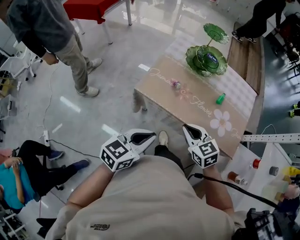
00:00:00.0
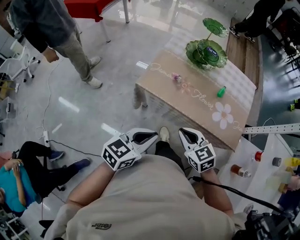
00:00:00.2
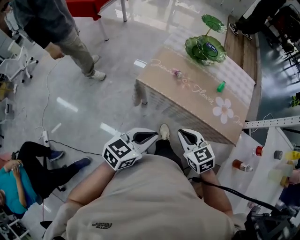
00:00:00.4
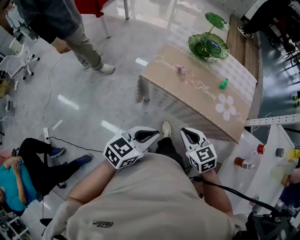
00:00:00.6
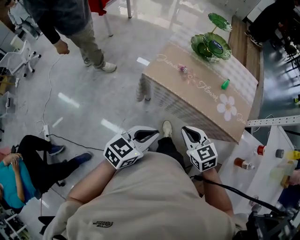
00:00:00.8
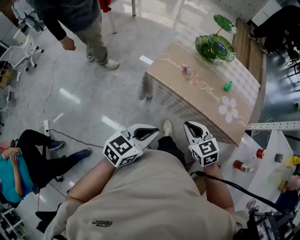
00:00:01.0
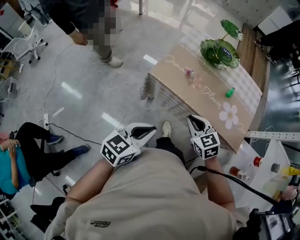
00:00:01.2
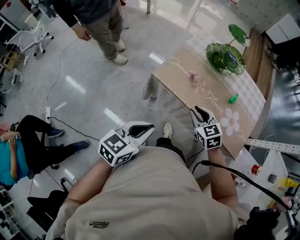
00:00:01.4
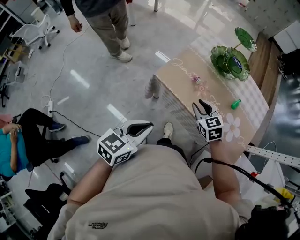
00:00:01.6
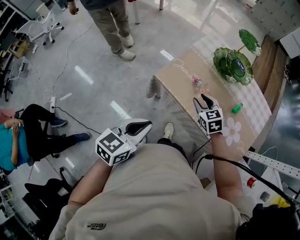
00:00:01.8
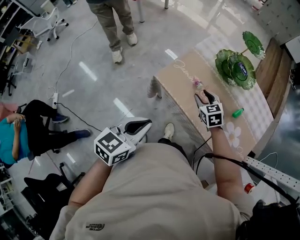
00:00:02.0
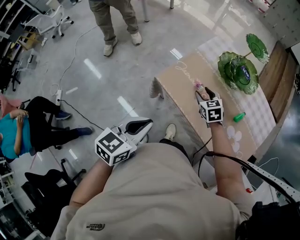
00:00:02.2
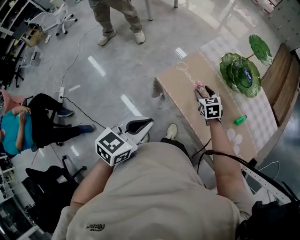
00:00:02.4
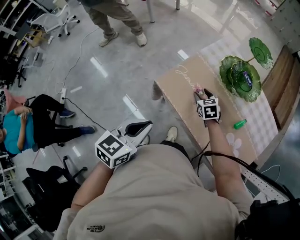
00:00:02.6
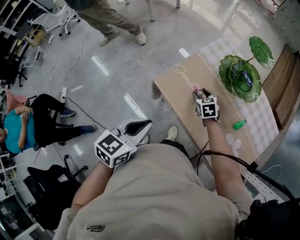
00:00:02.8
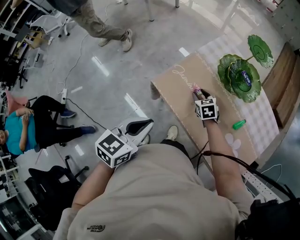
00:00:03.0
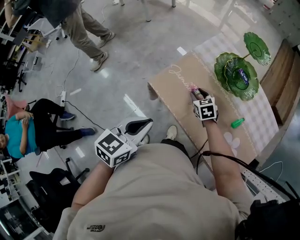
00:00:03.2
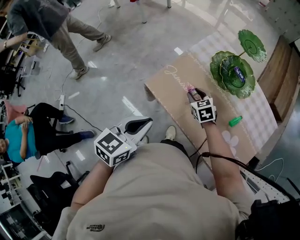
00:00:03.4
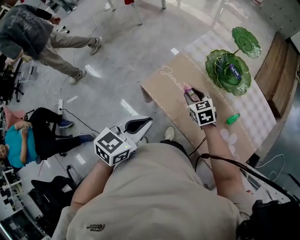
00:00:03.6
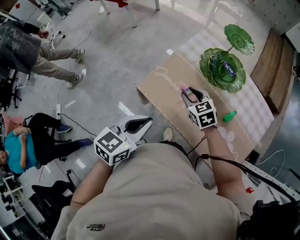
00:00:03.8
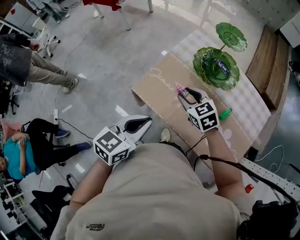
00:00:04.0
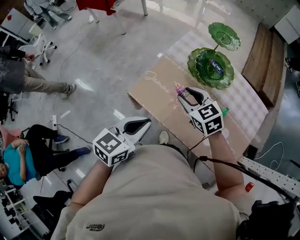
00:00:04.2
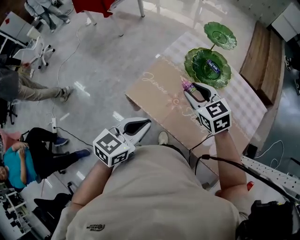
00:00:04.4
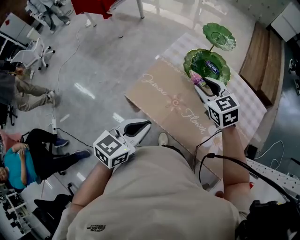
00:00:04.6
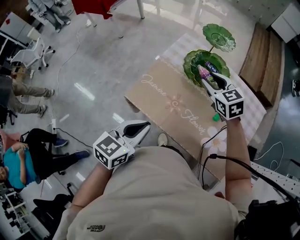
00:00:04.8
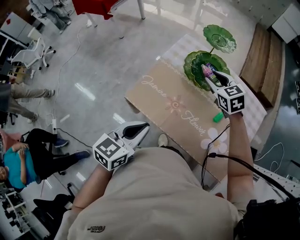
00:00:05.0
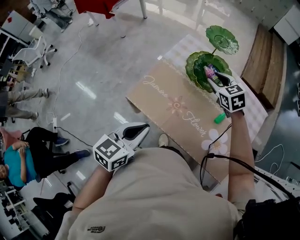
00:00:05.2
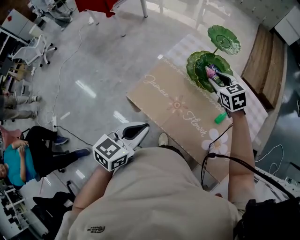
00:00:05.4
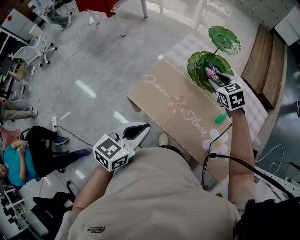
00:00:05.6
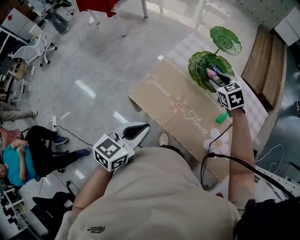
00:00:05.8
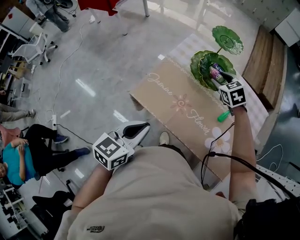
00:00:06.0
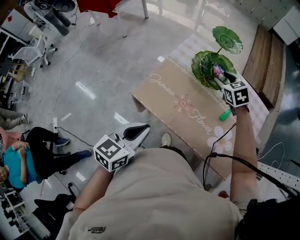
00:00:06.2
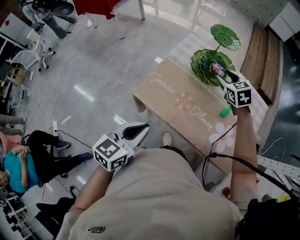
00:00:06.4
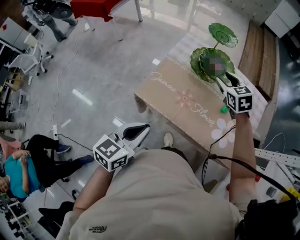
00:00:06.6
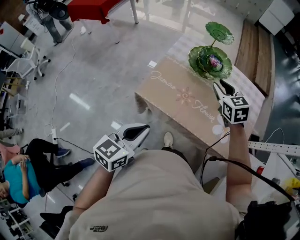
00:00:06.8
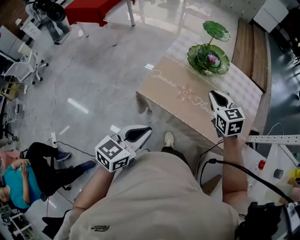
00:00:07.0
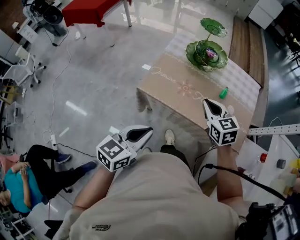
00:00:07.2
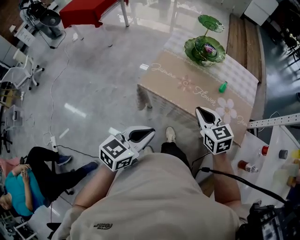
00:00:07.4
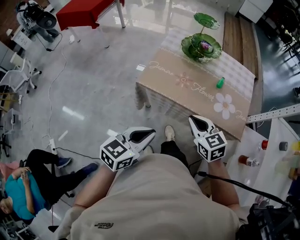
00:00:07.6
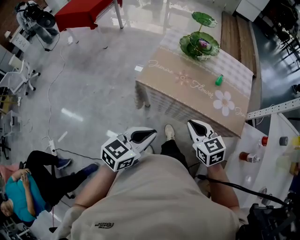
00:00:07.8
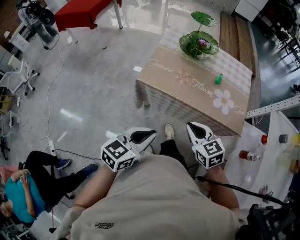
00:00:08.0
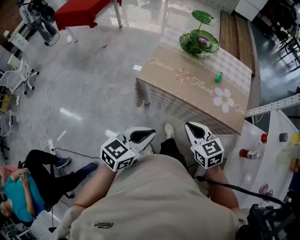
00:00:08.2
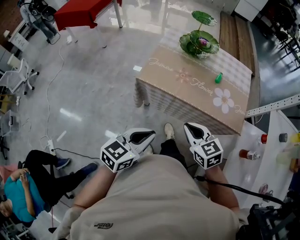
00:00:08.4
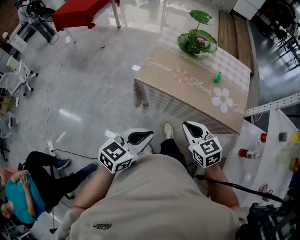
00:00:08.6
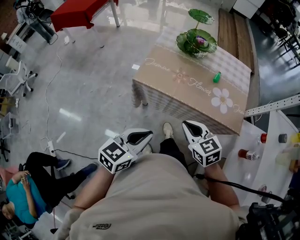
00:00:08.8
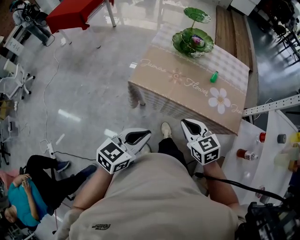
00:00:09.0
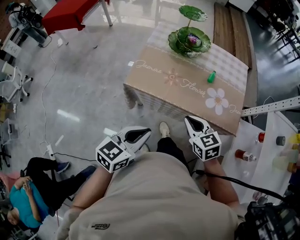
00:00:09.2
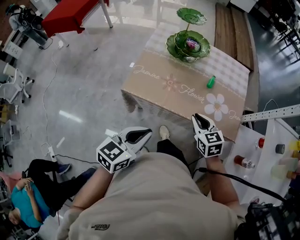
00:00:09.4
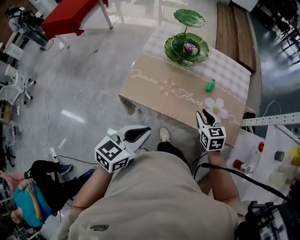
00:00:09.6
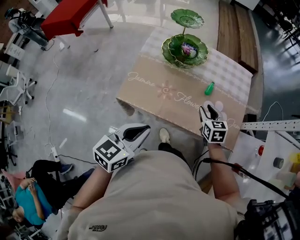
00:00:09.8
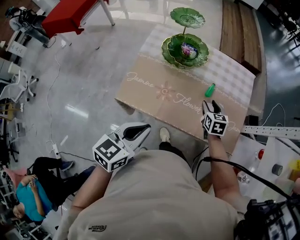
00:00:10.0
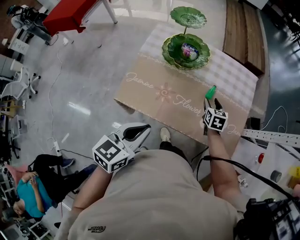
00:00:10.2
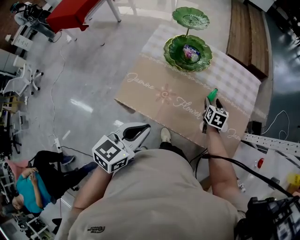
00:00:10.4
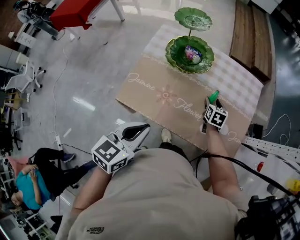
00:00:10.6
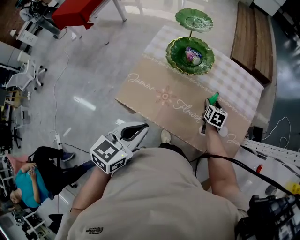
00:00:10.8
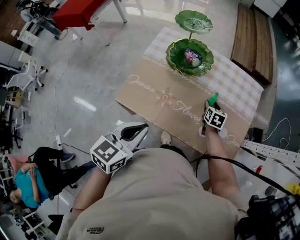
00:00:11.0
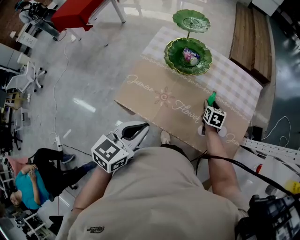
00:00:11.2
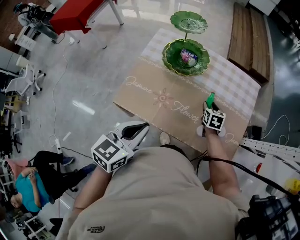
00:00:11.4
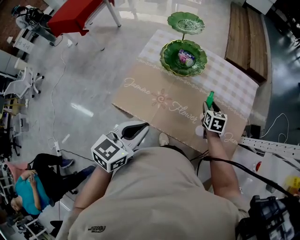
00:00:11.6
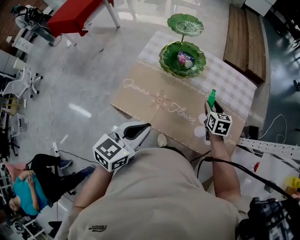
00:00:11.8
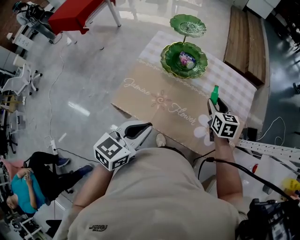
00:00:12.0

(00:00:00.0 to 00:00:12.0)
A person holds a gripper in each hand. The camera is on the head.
00:00:00.0 - 00:00:01.6: The right gripper heads forward and downward, covering approximately 10 cm, and opens, while the left gripper shifts about 5 cm to the left, and goes backward and returns, approximately 10 cm each way.
00:00:01.6 - 00:00:03.0: The right gripper goes roughly 20 cm forward and downward, while the left gripper shifts approximately 10 cm forward and to the right.
00:00:03.0 - 00:00:04.4: The right gripper is displaced upward by approximately 20 cm. Meanwhile the left gripper goes about 10 cm to the right.
00:00:04.4 - 00:00:06.0: The right gripper travels forward, to the right and downward by approximately 15 cm, and swivels about 20 degrees.
00:00:06.0 - 00:00:07.6: The right gripper travels backward by approximately 40 cm, changes its angle by roughly 30 degrees, and closes up. The left gripper travels backward by roughly 20 cm, and turns by about 20 degrees.
00:00:09.0 - 00:00:10.4: The left gripper shifts some 20 cm forward. Meanwhile the right gripper moves forward, downward and to the right, some 40 cm, swivels about 40 degrees, and opens up.
00:00:10.4 - 00:00:12.0: The right gripper heads upward, covering some 10 cm.

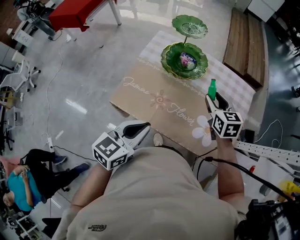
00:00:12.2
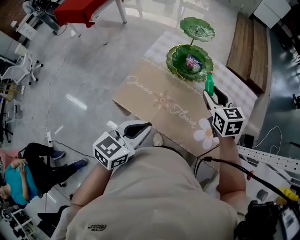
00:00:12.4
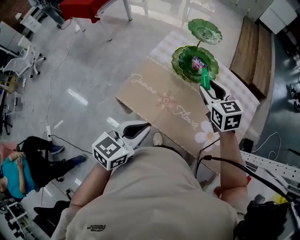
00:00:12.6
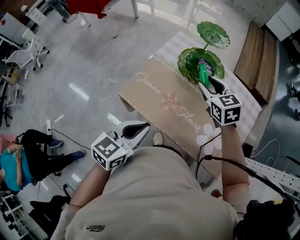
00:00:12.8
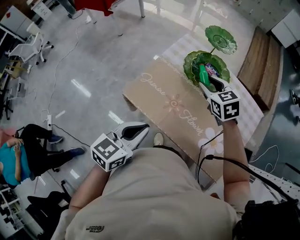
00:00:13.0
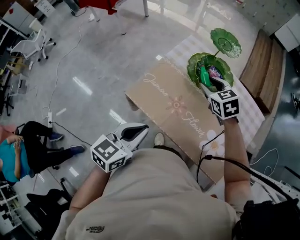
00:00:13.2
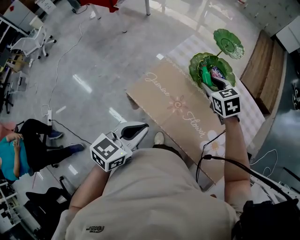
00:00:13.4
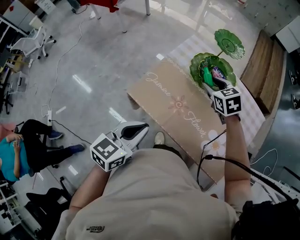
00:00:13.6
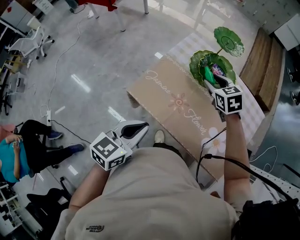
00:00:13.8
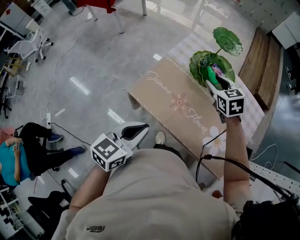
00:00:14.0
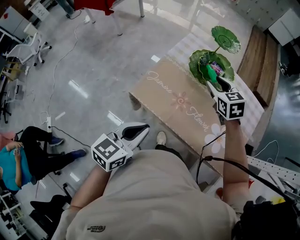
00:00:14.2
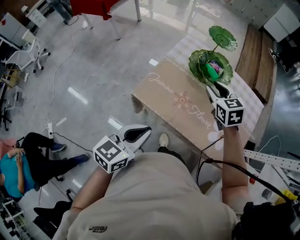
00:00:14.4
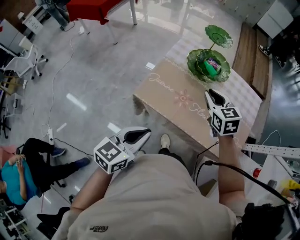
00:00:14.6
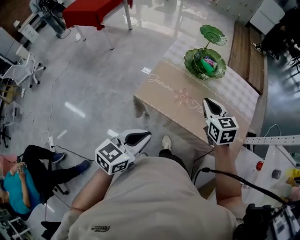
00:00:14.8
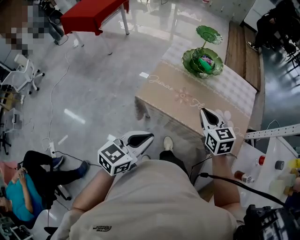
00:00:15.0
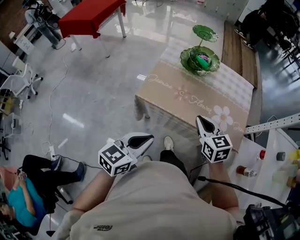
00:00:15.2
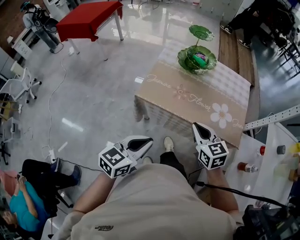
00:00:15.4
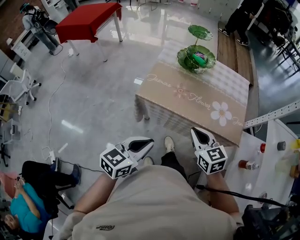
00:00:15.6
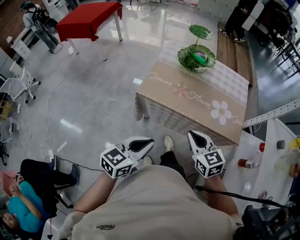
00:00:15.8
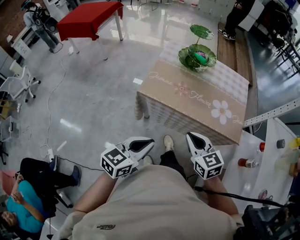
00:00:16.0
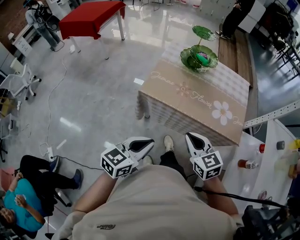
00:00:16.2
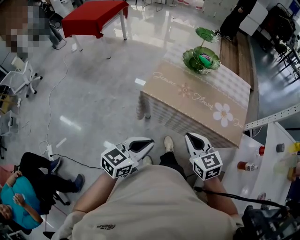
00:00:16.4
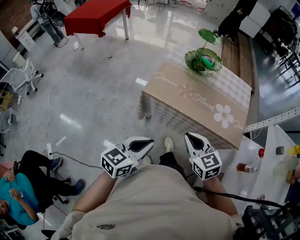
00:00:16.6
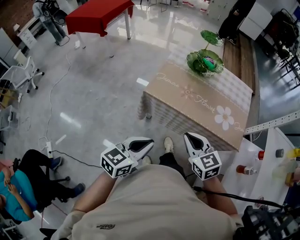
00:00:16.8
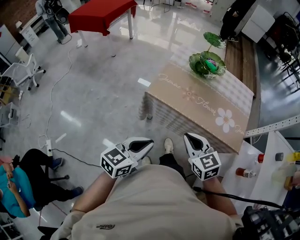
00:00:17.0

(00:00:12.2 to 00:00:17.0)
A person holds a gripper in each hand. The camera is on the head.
00:00:12.2 - 00:00:13.8: The left gripper moves to the left, roughly 10 cm, while the right gripper shifts roughly 20 cm to the left and forward, and turns by some 30 degrees.
00:00:13.8 - 00:00:15.4: The right gripper heads backward, covering some 35 cm, rotates about 30 degrees, and closes its fingers. The left gripper travels backward by some 20 cm, and swivels about 20 degrees.
00:00:15.4 - 00:00:17.0: The right gripper shifts roughly 10 cm backward and to the left. Meanwhile the left gripper changes place by roughly 5 cm.

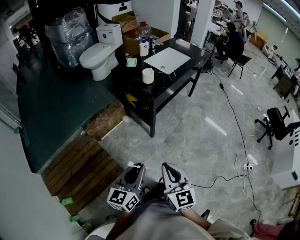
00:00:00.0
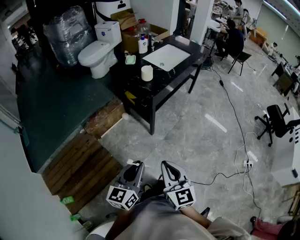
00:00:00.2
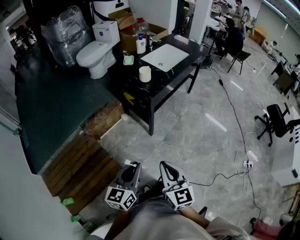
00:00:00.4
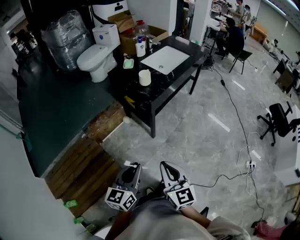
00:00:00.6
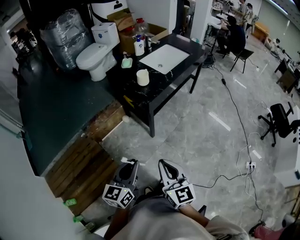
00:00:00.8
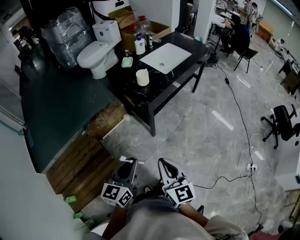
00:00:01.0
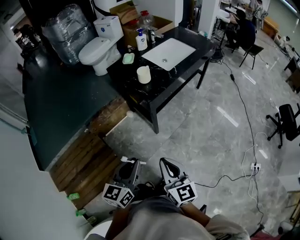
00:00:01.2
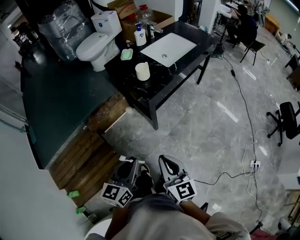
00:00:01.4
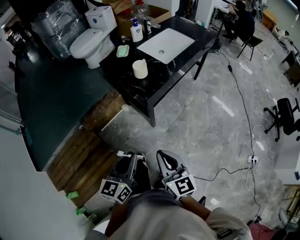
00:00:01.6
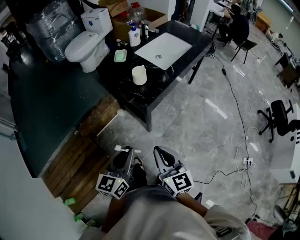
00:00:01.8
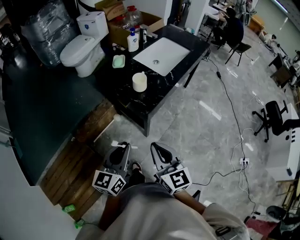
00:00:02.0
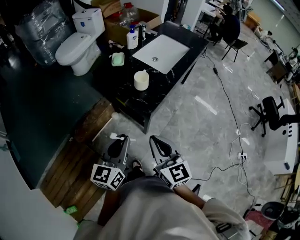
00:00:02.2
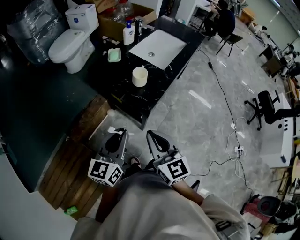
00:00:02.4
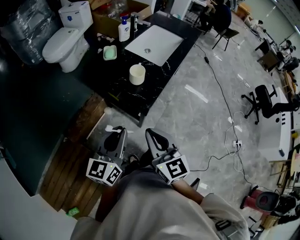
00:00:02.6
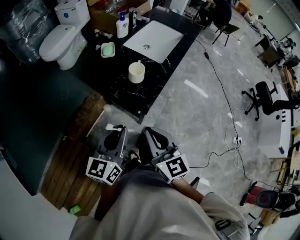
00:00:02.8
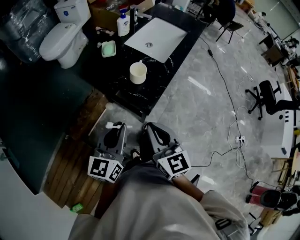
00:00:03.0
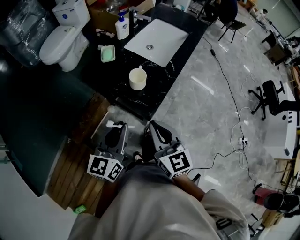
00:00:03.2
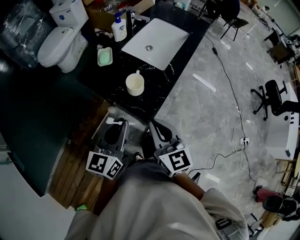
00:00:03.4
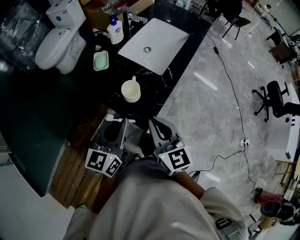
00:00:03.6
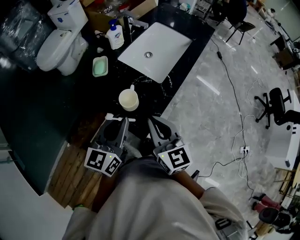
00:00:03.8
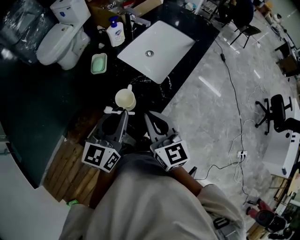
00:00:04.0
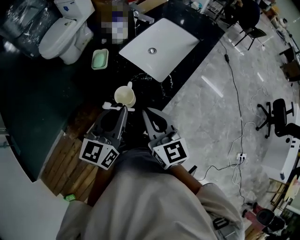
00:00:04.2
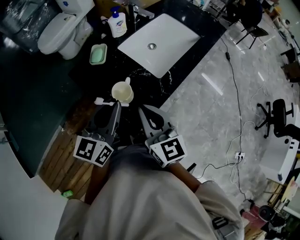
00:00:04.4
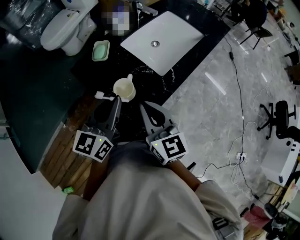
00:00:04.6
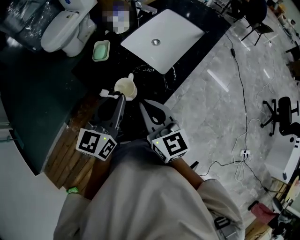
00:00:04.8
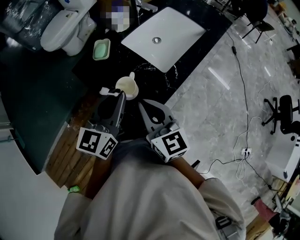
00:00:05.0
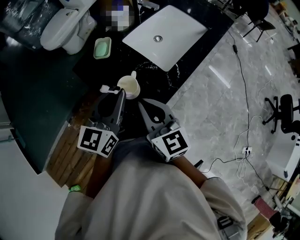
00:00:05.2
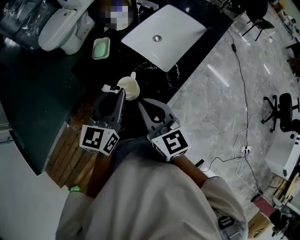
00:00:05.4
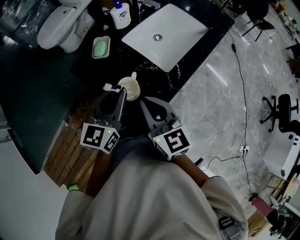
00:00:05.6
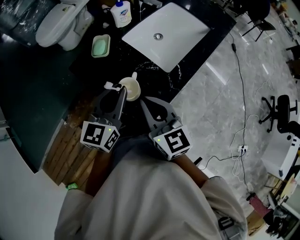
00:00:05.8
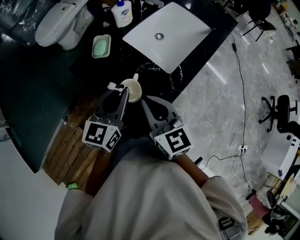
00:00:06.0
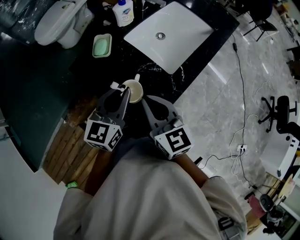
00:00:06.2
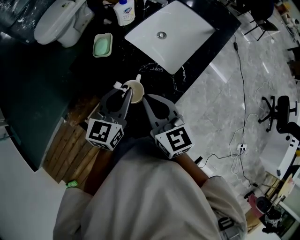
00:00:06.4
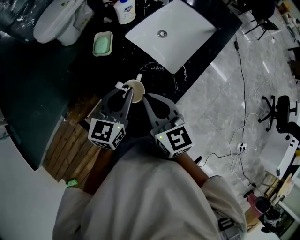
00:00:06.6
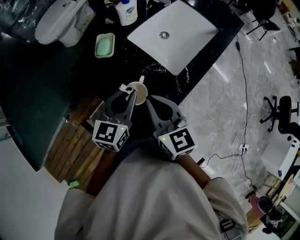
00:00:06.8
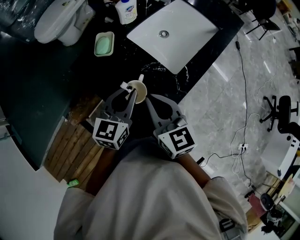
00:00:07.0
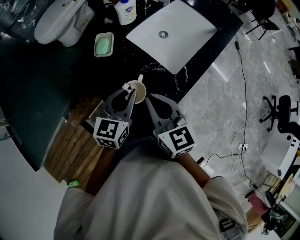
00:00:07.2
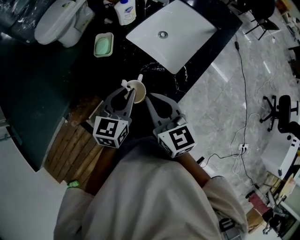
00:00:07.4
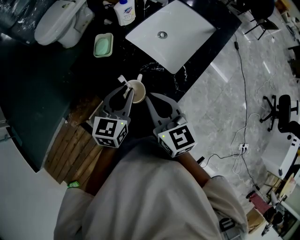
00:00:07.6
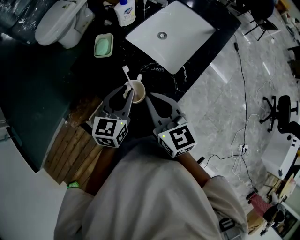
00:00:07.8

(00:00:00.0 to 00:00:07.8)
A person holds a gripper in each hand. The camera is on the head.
00:00:00.0 - 00:00:01.6: The two grippers go approximately 15 cm forward.
00:00:01.6 - 00:00:03.2: The left gripper heads forward, covering some 25 cm, while the right gripper is displaced forward and to the left by roughly 25 cm.
00:00:03.2 - 00:00:04.6: The right gripper goes about 15 cm forward, while the left gripper moves forward and to the right, some 20 cm.
00:00:04.6 - 00:00:06.2: The right gripper changes place by approximately 5 cm; the left gripper travels downward and forward by roughly 10 cm.
00:00:06.2 - 00:00:07.8: The grippers make only small movements.
